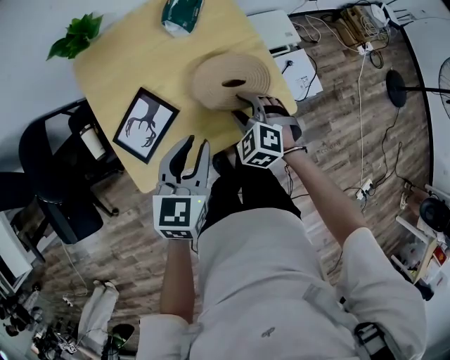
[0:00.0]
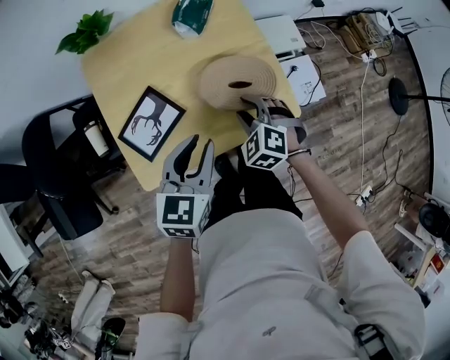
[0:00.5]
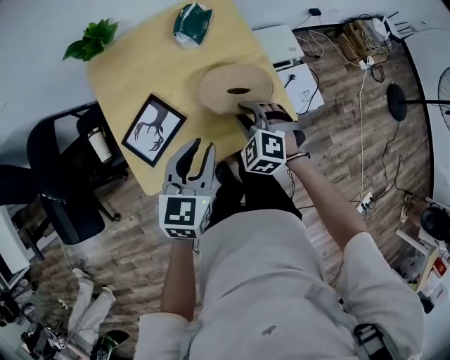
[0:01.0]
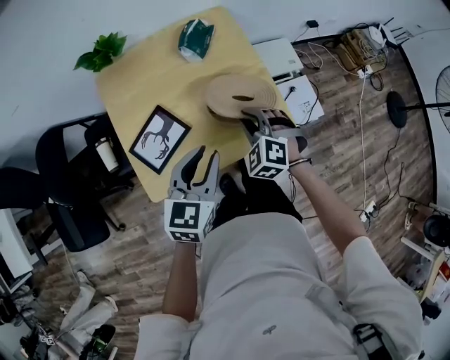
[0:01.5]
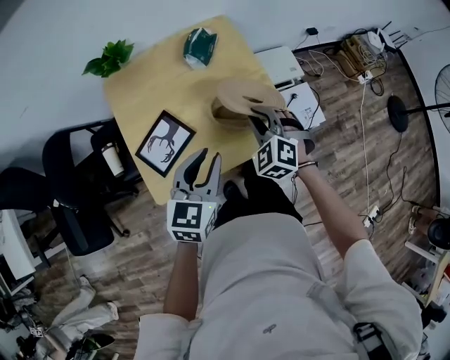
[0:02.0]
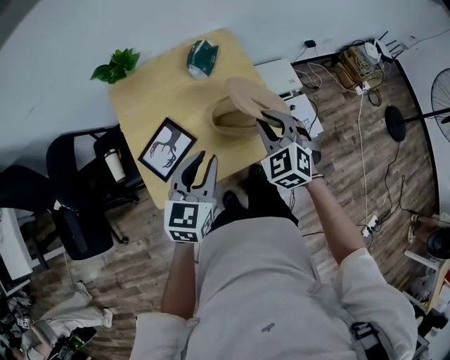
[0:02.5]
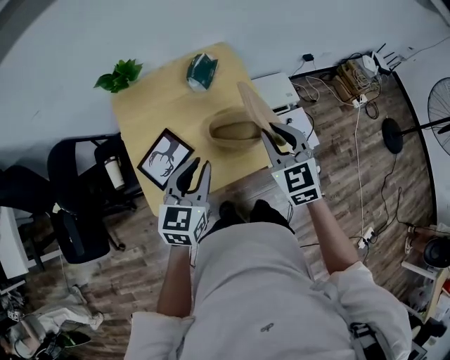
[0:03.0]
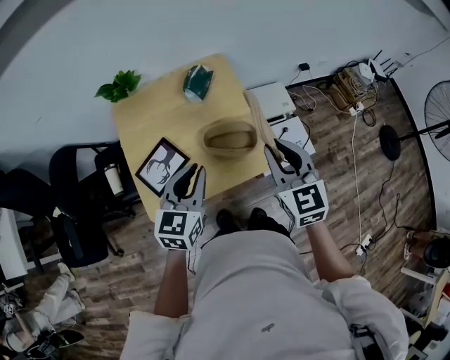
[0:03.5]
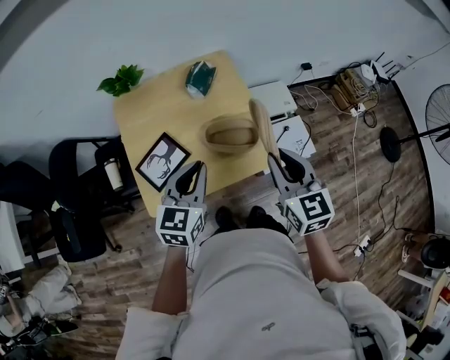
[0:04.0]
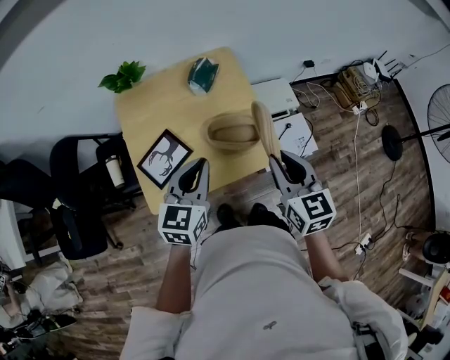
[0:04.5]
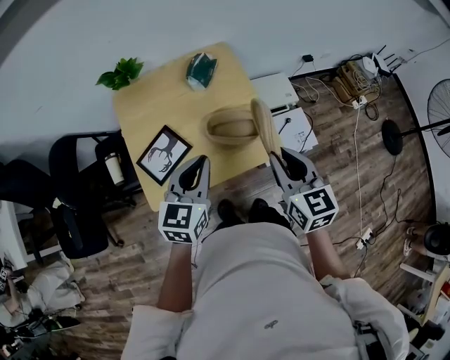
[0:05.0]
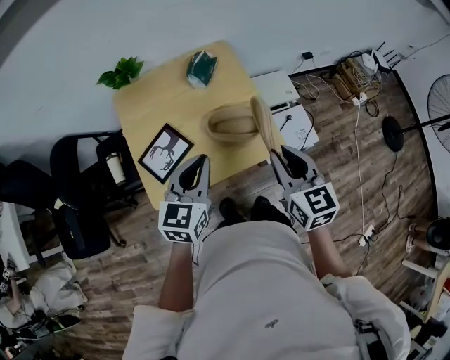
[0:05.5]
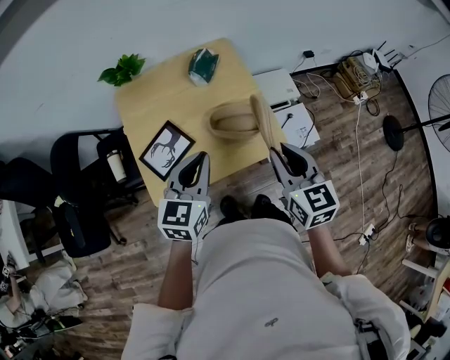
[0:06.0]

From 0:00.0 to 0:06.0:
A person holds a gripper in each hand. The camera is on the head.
From 0:00.0 to 0:02.0: The left gripper shifts approximately 5 cm upward. Meanwhile the right gripper heads upward, covering roughly 10 cm, and closes its fingers.
From 0:02.0 to 0:04.0: The right gripper travels upward, to the right and backward by roughly 20 cm, and rolls clockwise, seen from behind, by roughly 50 degrees; the left gripper goes some 5 cm upward.
From 0:04.0 to 0:06.0: The grippers move only a little.

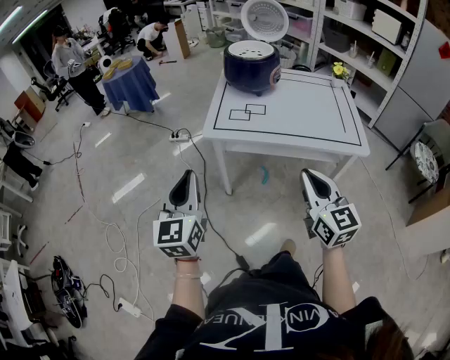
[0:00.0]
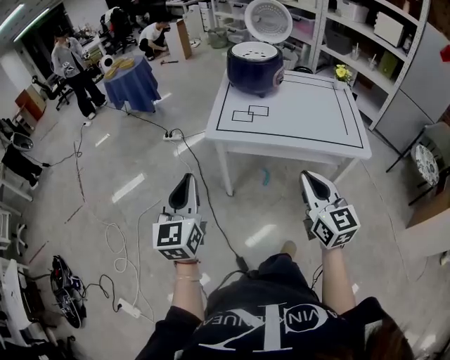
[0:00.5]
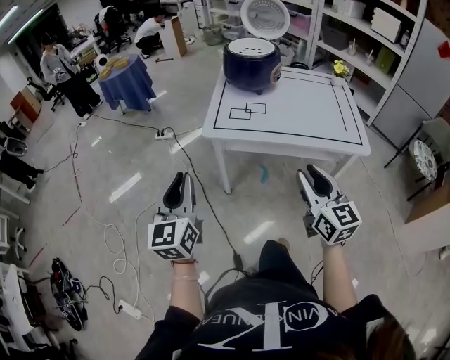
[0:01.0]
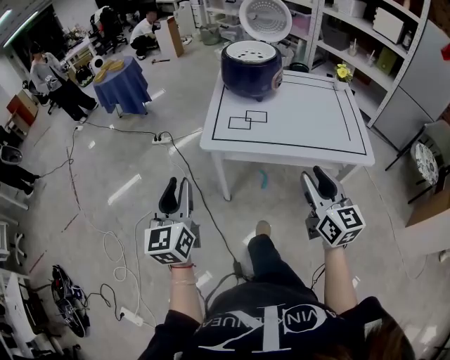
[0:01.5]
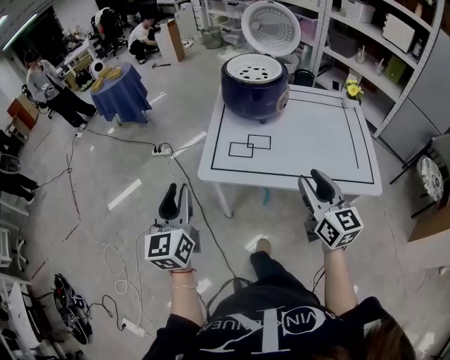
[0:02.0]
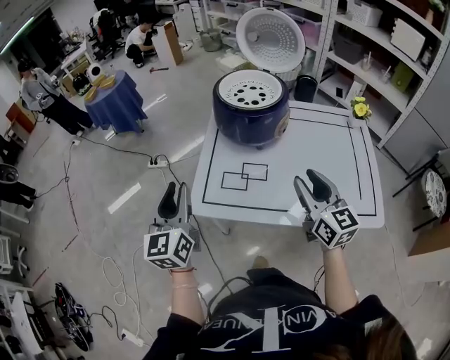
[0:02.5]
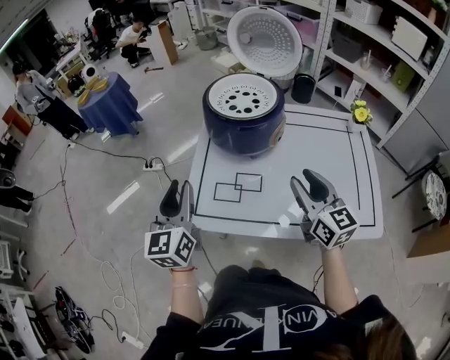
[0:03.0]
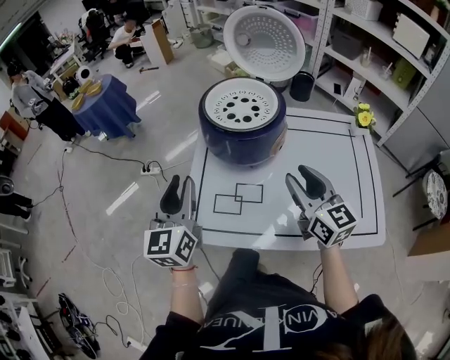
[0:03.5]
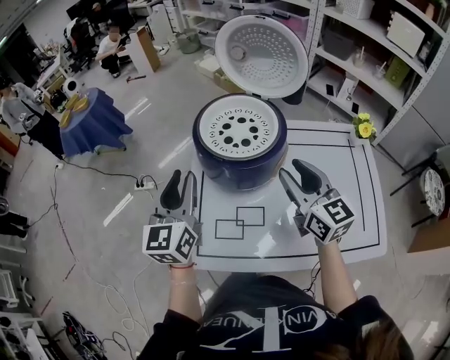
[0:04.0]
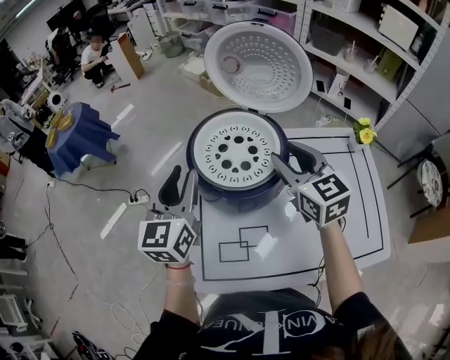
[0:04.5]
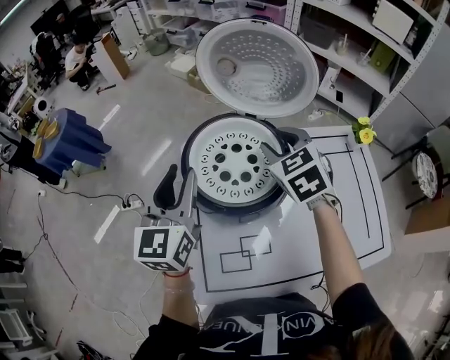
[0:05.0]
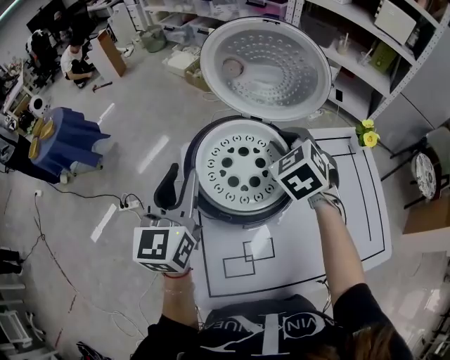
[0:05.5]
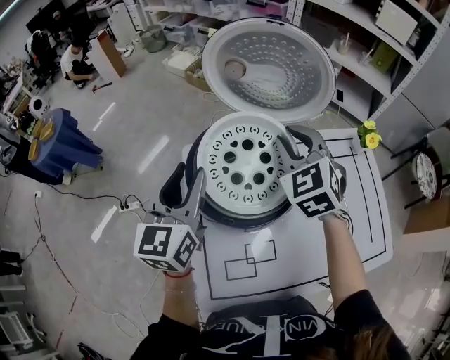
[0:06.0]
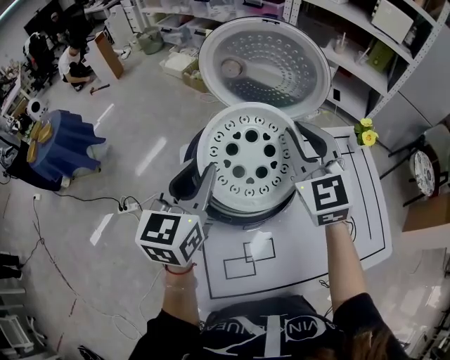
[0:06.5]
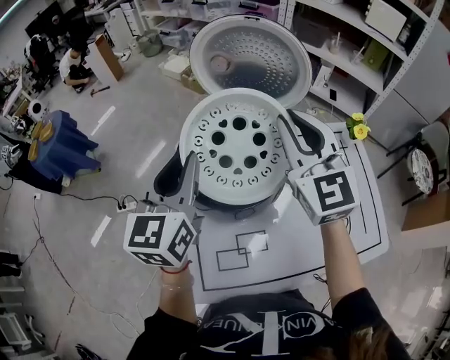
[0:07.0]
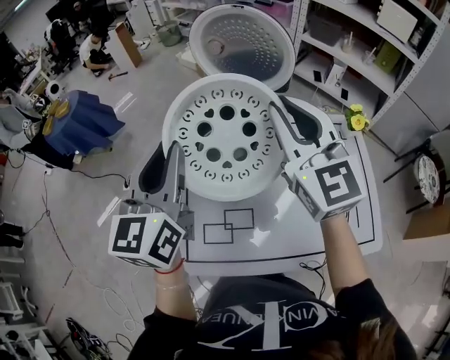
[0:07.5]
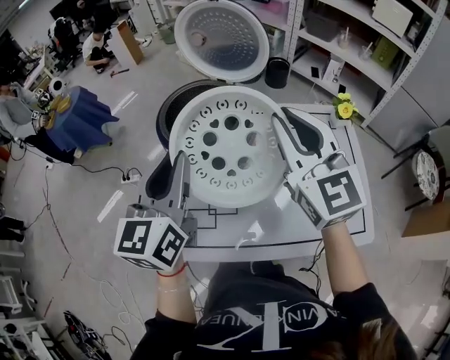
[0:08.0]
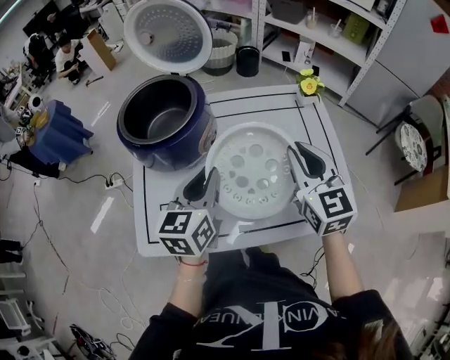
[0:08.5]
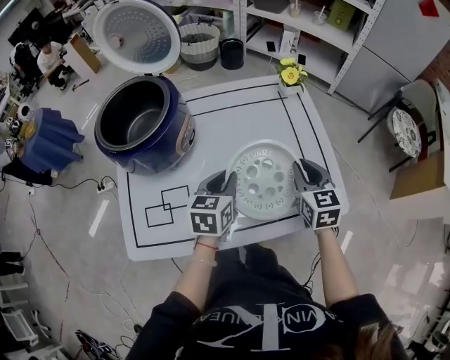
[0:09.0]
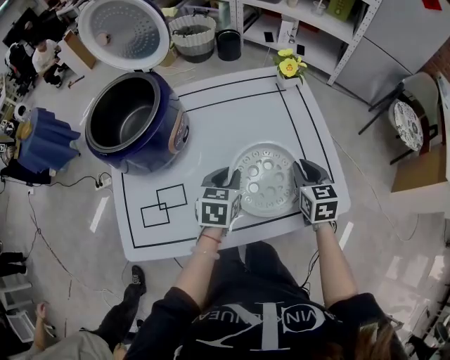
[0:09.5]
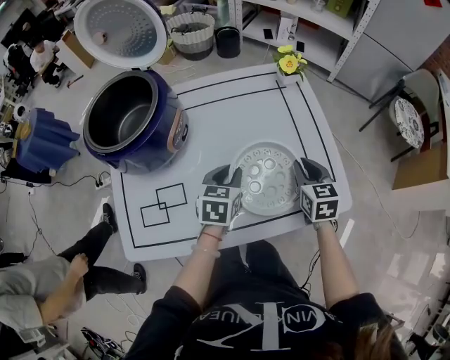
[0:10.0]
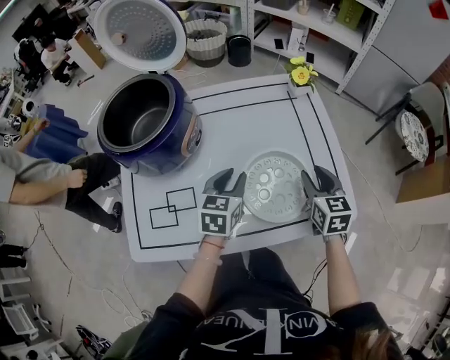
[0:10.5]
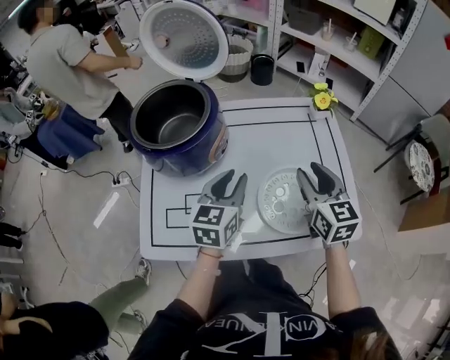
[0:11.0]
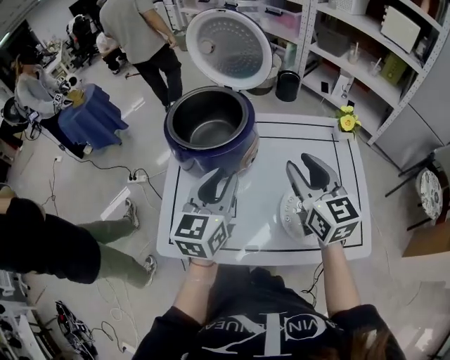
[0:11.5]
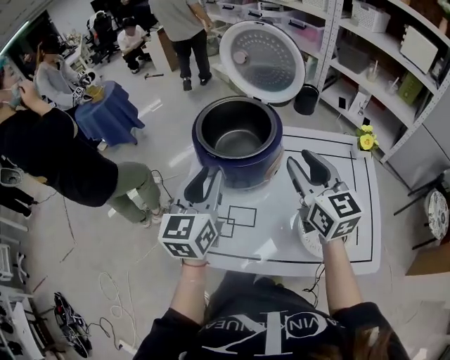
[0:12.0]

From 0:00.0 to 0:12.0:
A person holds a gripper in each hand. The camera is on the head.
From 0:00.0 to 0:02.0: The two grippers go some 20 cm forward. The right gripper opens.
From 0:02.0 to 0:04.0: The grippers both shift forward by approximately 35 cm.
From 0:04.0 to 0:06.0: The grippers both shift forward by some 20 cm. The right gripper swivels approximately 50 degrees.
From 0:06.0 to 0:08.0: The right gripper travels backward, upward and to the right by approximately 25 cm, and turns by about 40 degrees, while the left gripper travels backward and to the right by approximately 20 cm.
From 0:08.0 to 0:10.0: The grippers both shift downward by approximately 30 cm. The right gripper angles its fingers downward, by some 40 degrees, while the left gripper points its fingers some 40 degrees further downward.
From 0:10.0 to 0:12.0: The left gripper moves roughly 40 cm, and points its fingers roughly 30 degrees further upward; the right gripper moves approximately 40 cm, swivels roughly 40 degrees, and opens its fingers.

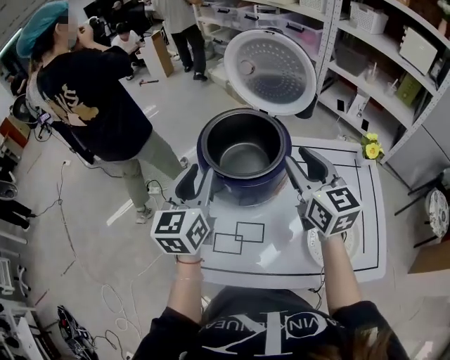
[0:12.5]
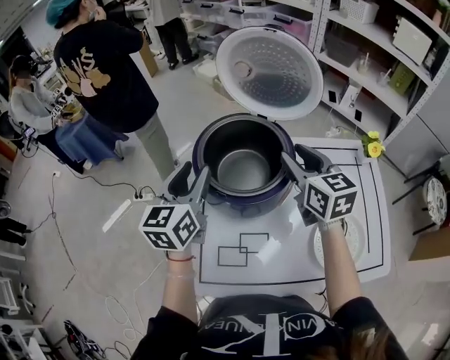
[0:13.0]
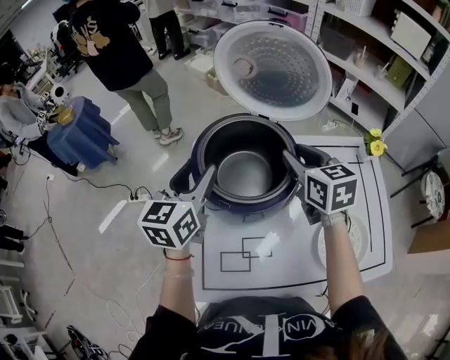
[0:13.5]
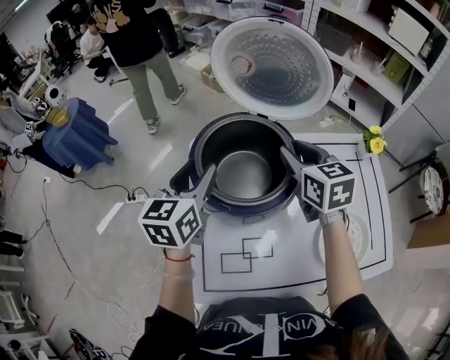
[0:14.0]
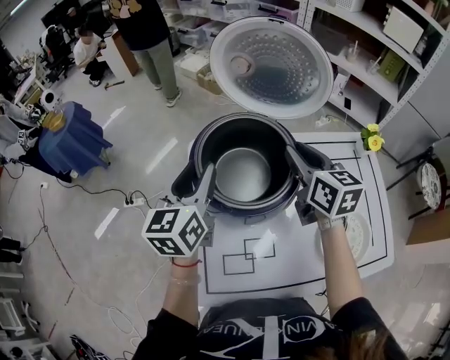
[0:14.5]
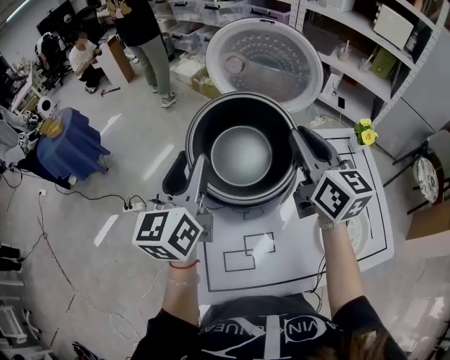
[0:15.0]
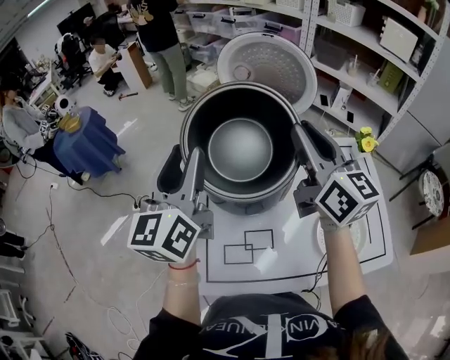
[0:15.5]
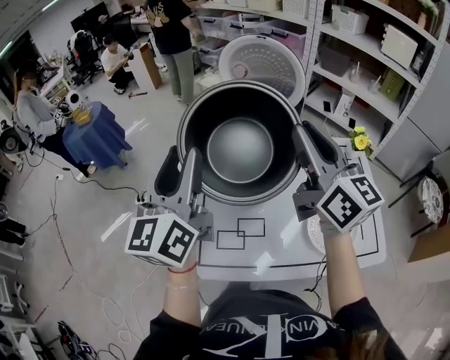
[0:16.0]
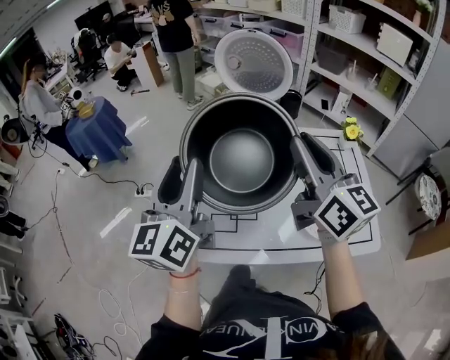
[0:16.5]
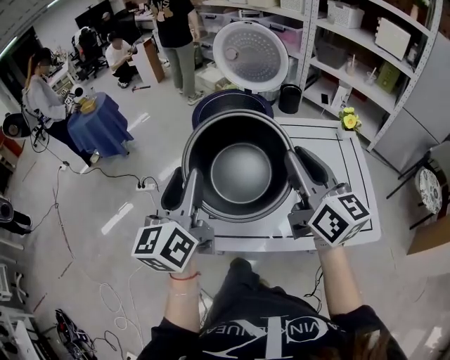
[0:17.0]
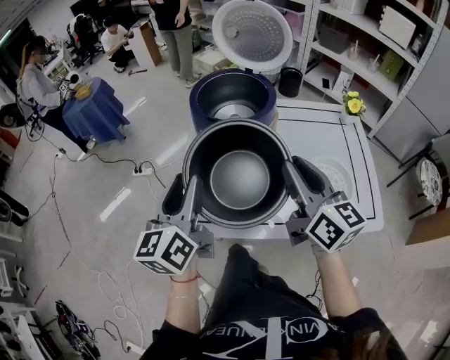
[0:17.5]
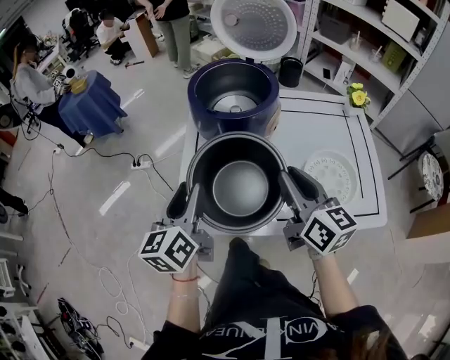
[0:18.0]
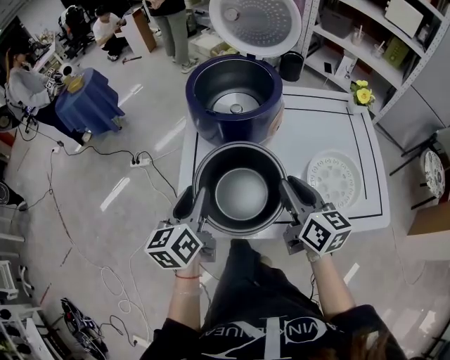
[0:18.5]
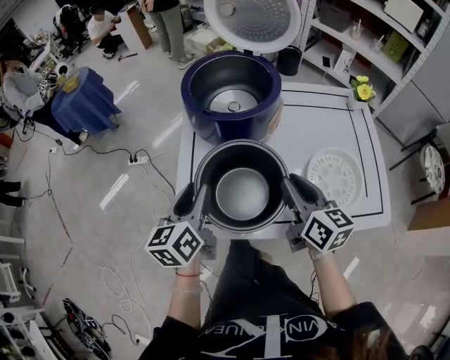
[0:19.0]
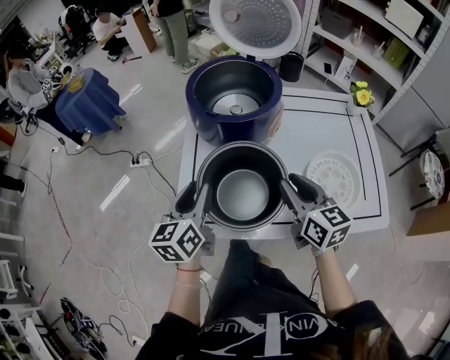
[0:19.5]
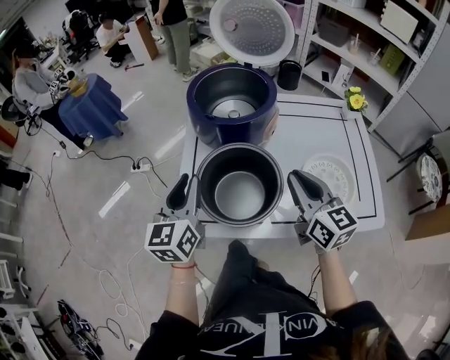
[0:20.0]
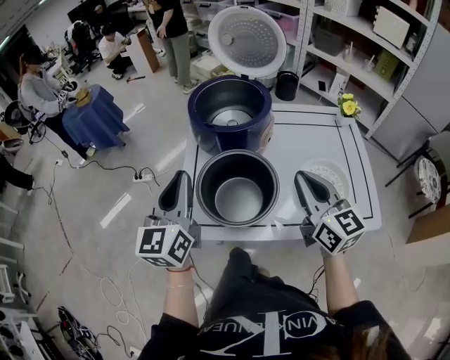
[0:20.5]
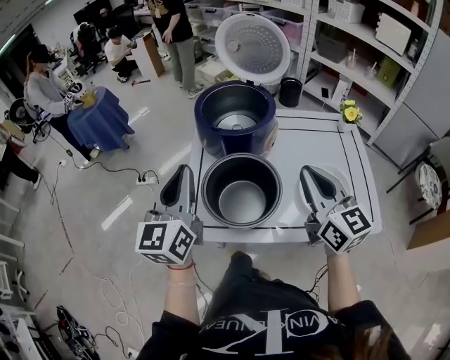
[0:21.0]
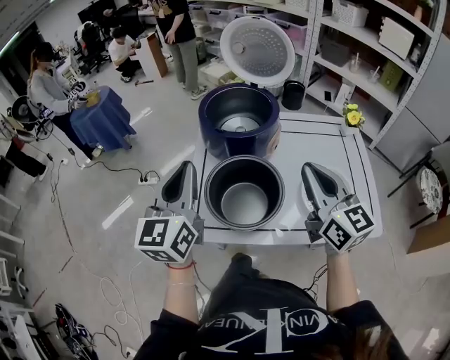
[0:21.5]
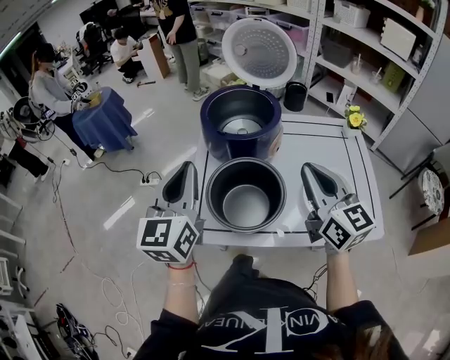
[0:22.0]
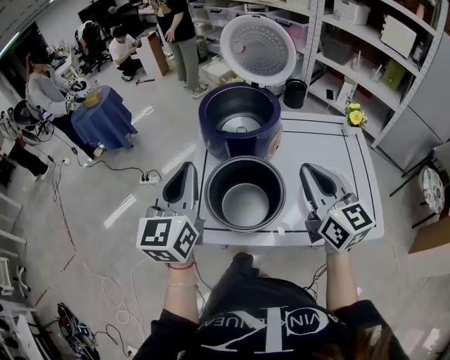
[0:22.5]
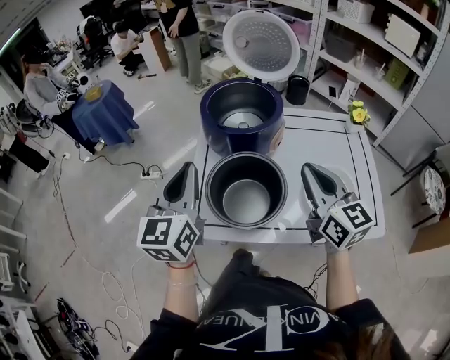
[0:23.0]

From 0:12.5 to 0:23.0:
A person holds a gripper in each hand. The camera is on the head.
From 0:12.5 to 0:14.5: The left gripper heads forward, covering approximately 10 cm; the right gripper goes roughly 10 cm forward and downward.
From 0:14.5 to 0:16.5: Both grippers move backward and upward, some 25 cm. The left gripper rotates some 20 degrees. The right gripper turns by some 30 degrees.
From 0:16.5 to 0:19.0: The two grippers go roughly 25 cm downward. The right gripper changes its angle by approximately 30 degrees. Meanwhile the left gripper swivels roughly 30 degrees.
From 0:19.0 to 0:21.0: Both grippers move upward, about 15 cm. The right gripper changes its angle by approximately 30 degrees; the left gripper rotates about 30 degrees, and closes its fingers.
From 0:21.0 to 0:23.0: There are only small adjustments of the grippers.
